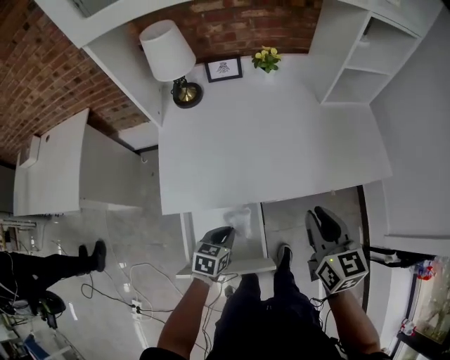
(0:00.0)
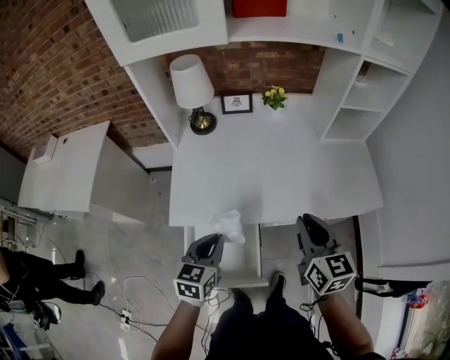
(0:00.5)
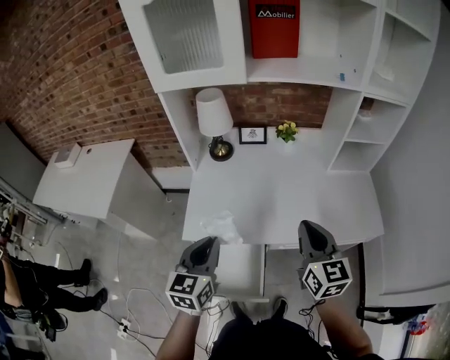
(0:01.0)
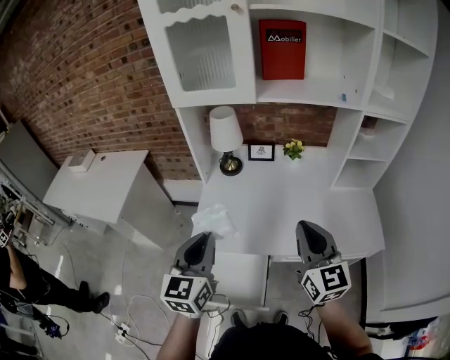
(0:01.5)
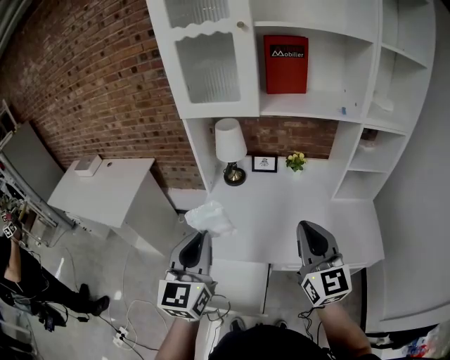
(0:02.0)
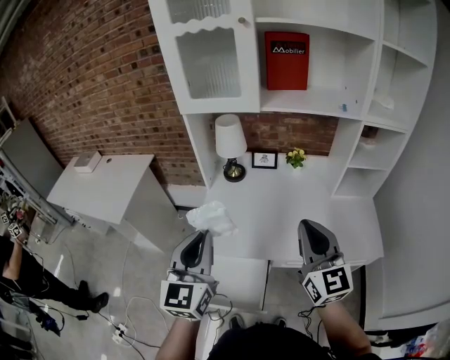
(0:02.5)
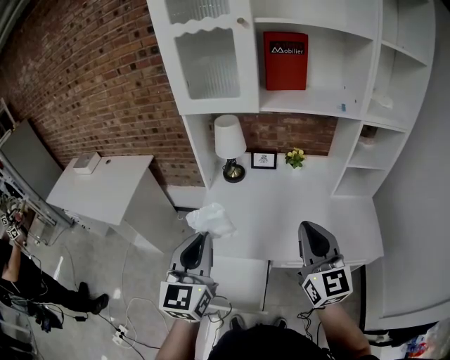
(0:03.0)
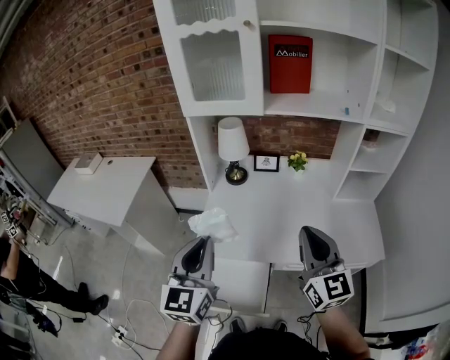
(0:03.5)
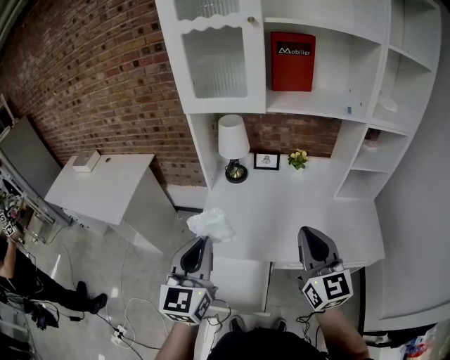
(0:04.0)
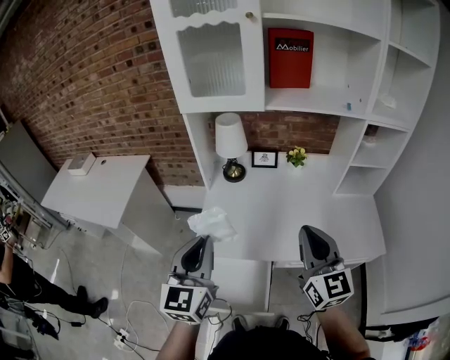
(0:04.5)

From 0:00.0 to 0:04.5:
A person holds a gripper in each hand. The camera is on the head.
From 0:00.0 to 0:02.0: The right gripper heads upward, covering roughly 25 cm, and changes its angle by approximately 40 degrees; the left gripper is displaced upward by approximately 50 cm, and tilts its fingers roughly 50 degrees upward.
From 0:02.0 to 0:04.5: The grippers make only small movements.

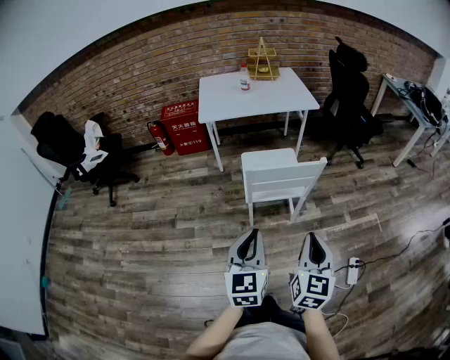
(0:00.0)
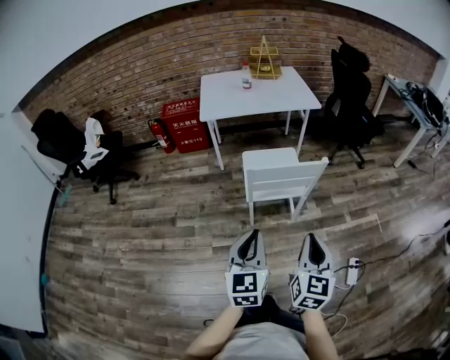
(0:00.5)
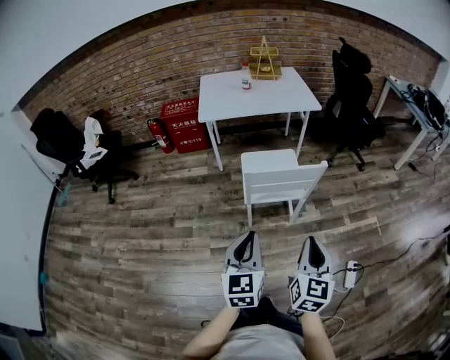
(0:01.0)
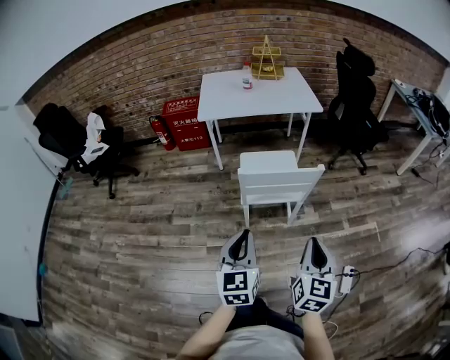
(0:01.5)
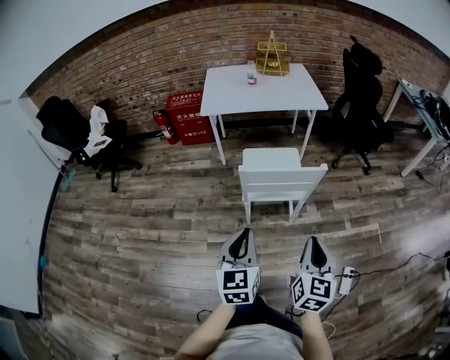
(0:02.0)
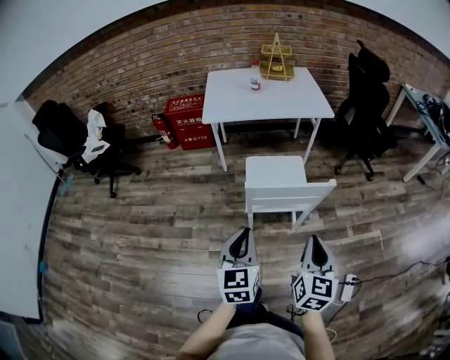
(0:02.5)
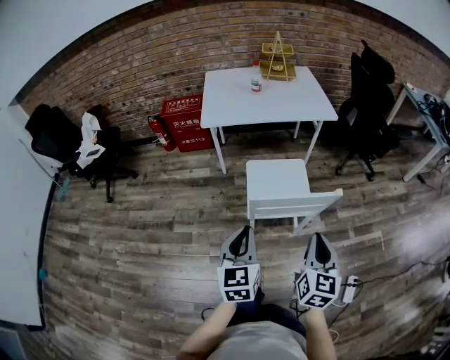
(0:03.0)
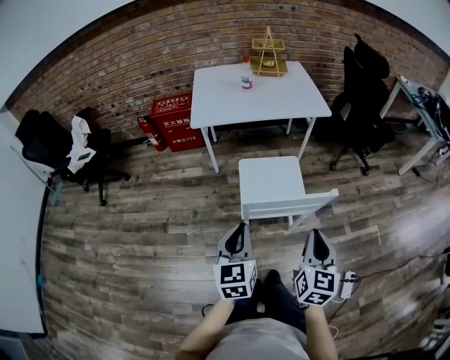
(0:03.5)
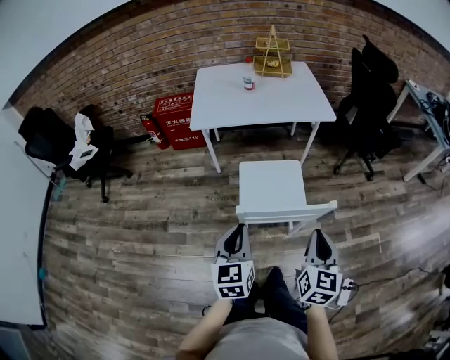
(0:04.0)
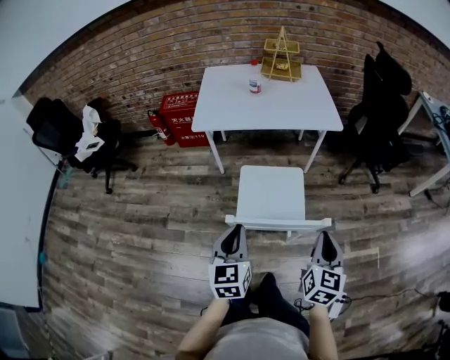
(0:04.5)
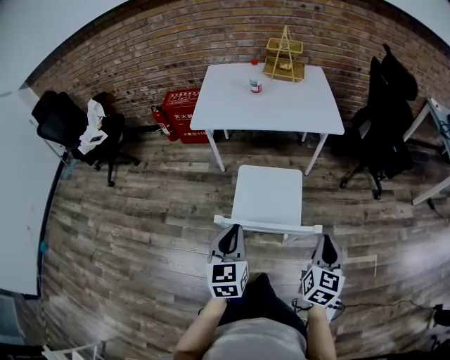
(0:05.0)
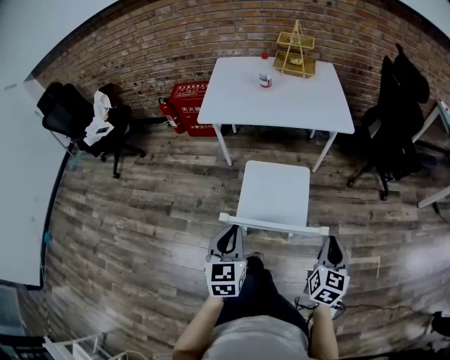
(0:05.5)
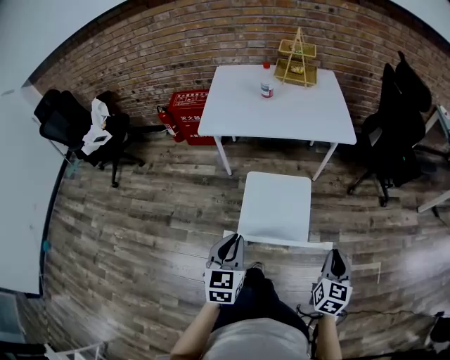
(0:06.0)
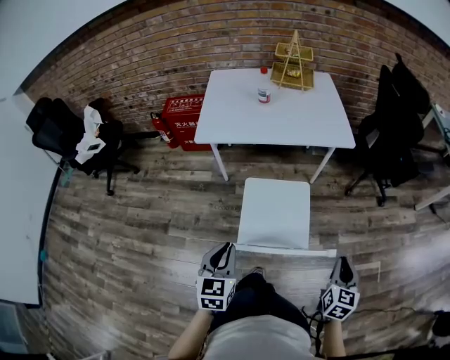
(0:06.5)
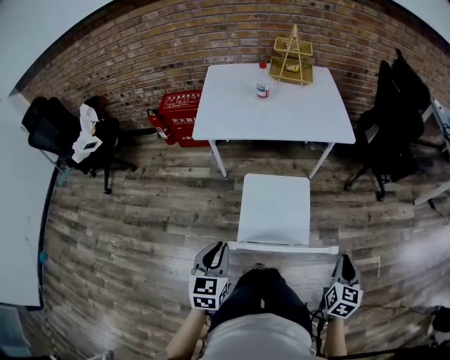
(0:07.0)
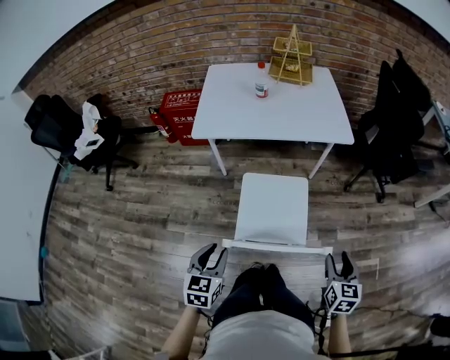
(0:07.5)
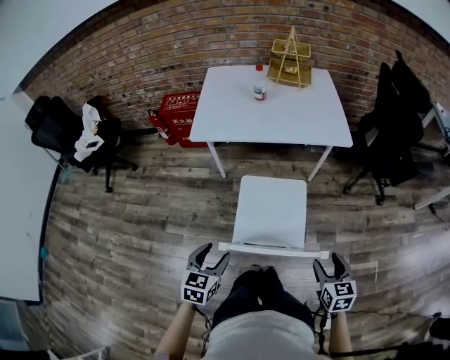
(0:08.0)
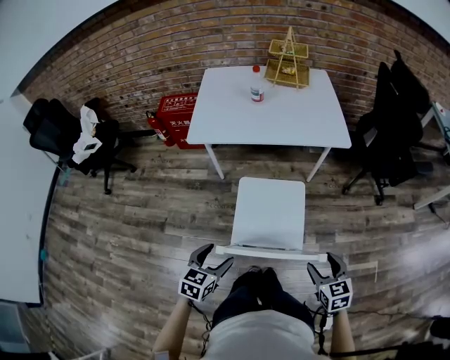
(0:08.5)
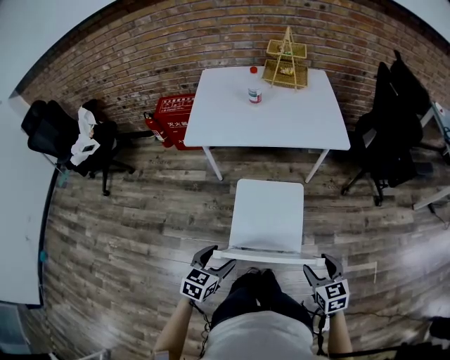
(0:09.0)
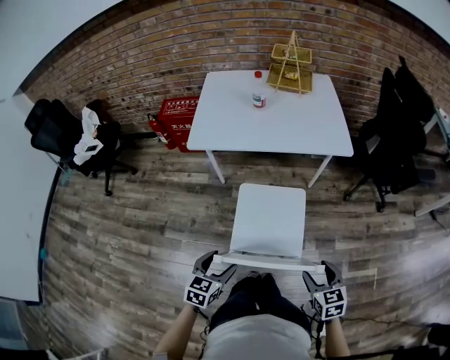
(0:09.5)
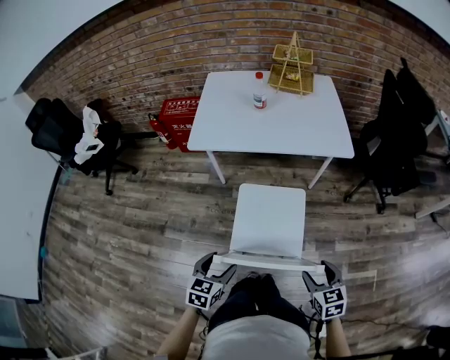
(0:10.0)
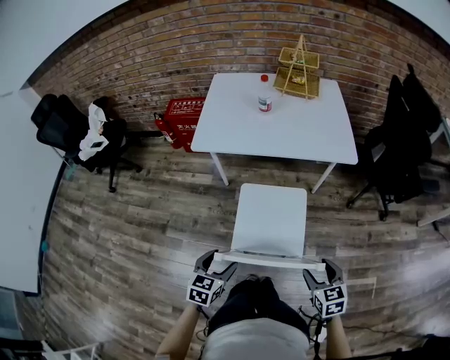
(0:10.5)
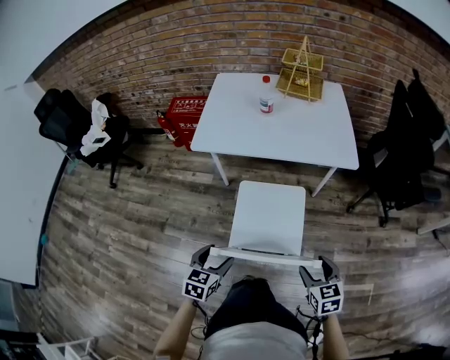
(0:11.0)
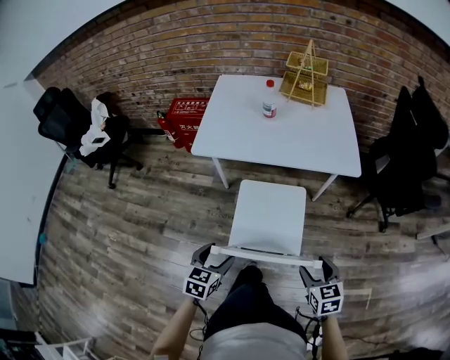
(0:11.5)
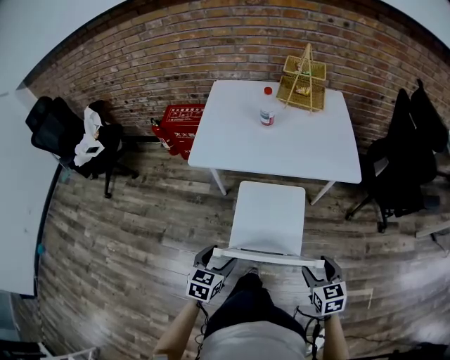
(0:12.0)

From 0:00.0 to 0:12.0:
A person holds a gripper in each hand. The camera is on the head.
From 0:00.0 to 0:02.0: The right gripper is displaced to the right by about 5 cm. Meanwhile the left gripper ends up approximately 5 cm from where it was.
From 0:02.0 to 0:04.0: Both grippers move forward, roughly 20 cm.
From 0:04.0 to 0:06.0: The left gripper heads forward, covering roughly 5 cm; the right gripper travels to the right, forward and downward by some 15 cm.
From 0:06.0 to 0:08.0: The right gripper rotates some 20 degrees, and opens. Meanwhile the left gripper is displaced downward by roughly 5 cm, and opens its fingers.
From 0:08.0 to 0:10.0: The left gripper shifts by some 5 cm.
From 0:10.0 to 0:12.0: The two grippers go approximately 10 cm forward.

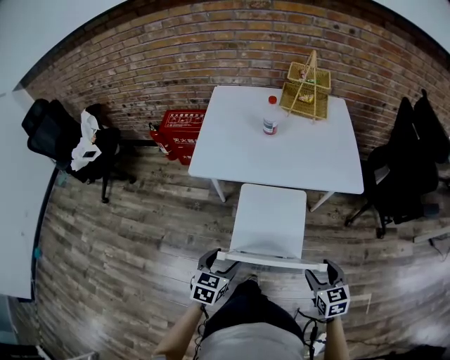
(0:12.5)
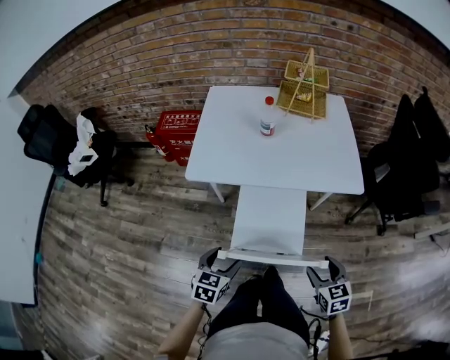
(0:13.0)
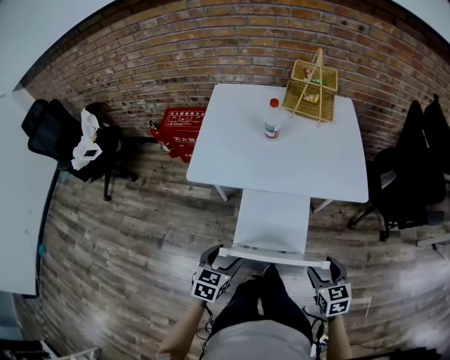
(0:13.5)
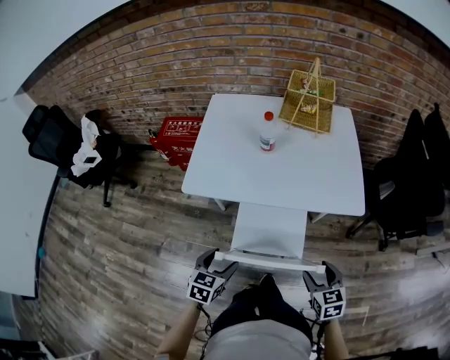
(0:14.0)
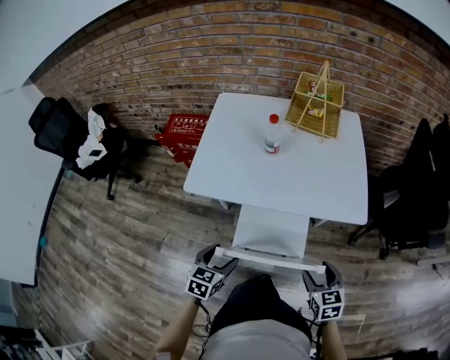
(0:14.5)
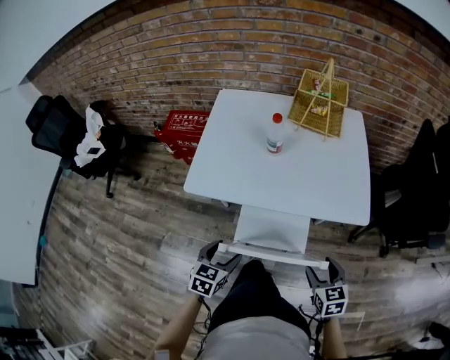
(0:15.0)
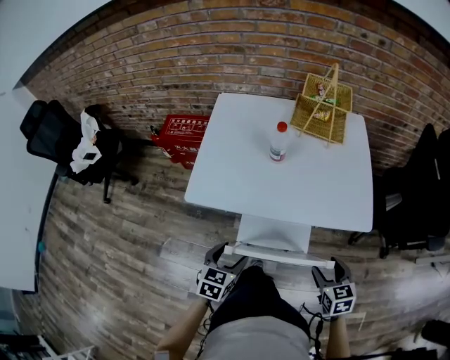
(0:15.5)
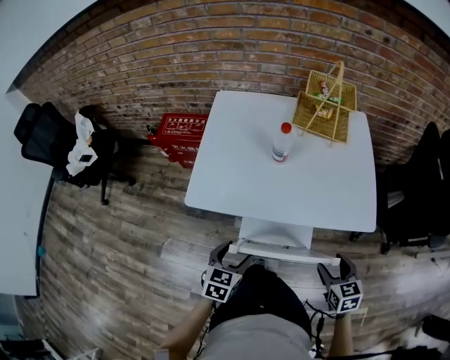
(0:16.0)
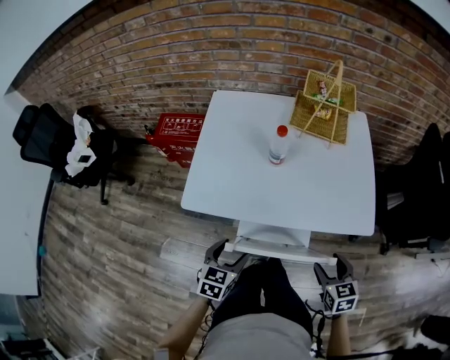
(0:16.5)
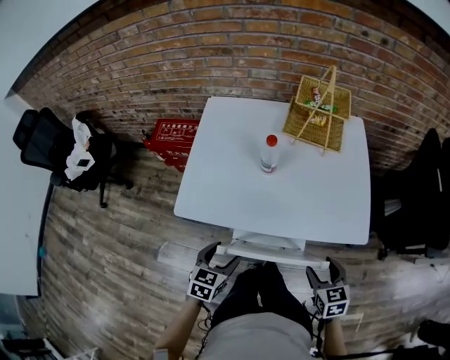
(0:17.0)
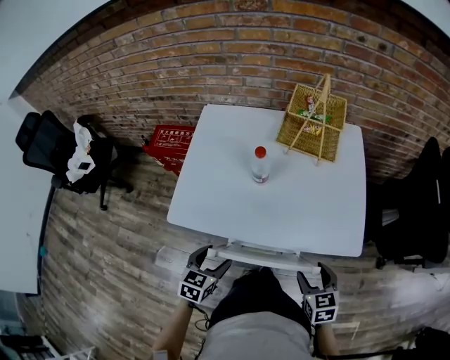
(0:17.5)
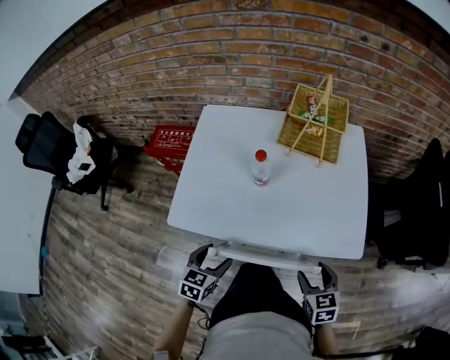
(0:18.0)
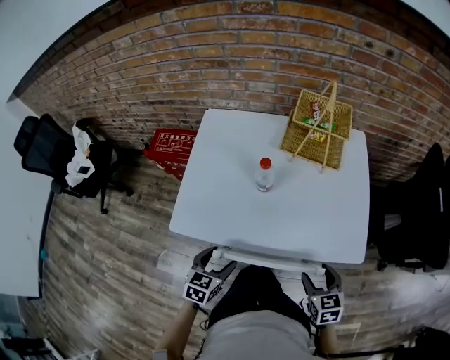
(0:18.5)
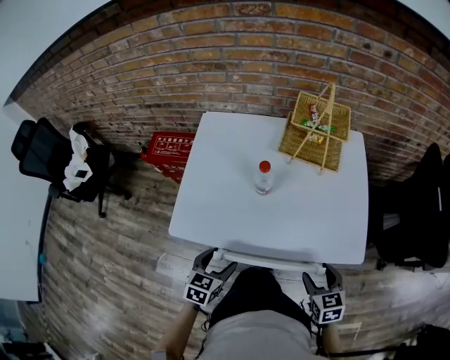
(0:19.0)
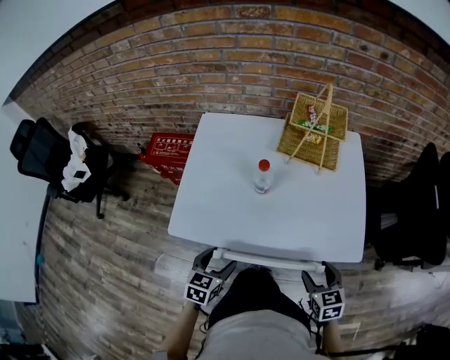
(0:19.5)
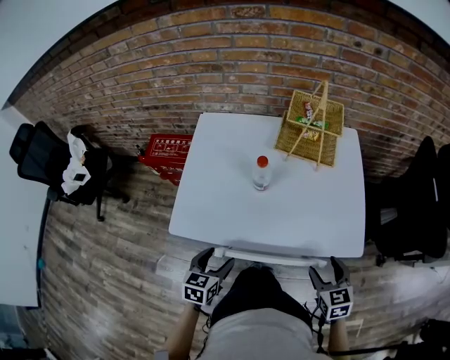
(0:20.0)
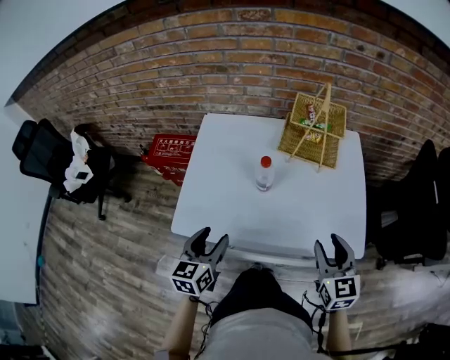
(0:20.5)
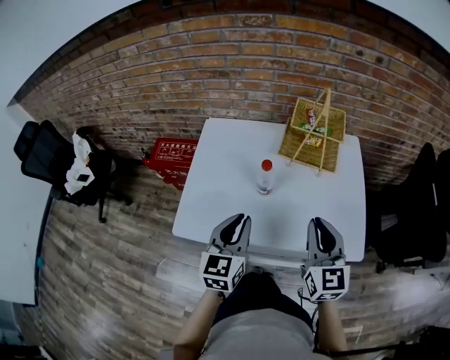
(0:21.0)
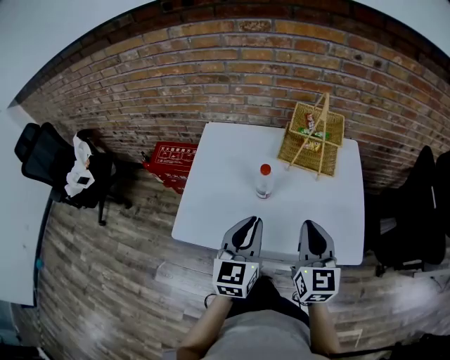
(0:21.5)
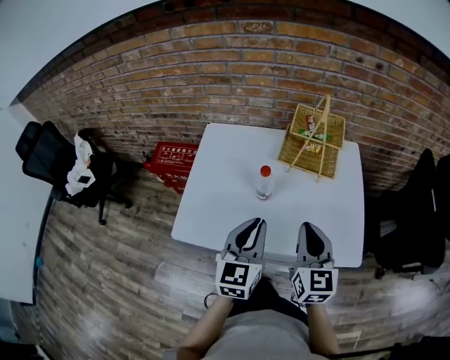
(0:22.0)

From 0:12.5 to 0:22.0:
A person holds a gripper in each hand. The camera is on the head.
From 0:12.5 to 0:14.5: Both grippers move forward, approximately 10 cm.
From 0:14.5 to 0:16.5: Both grippers move forward, roughly 10 cm.
From 0:16.5 to 0:18.0: The two grippers go about 5 cm forward.
From 0:18.0 to 0:20.0: The grippers stay close to where they were, moving slightly.
From 0:20.0 to 0:22.0: The left gripper goes roughly 25 cm upward, forward and to the right, rotates some 30 degrees, and closes up. Meanwhile the right gripper goes about 20 cm upward, forward and to the left, swivels about 30 degrees, and closes its fingers.

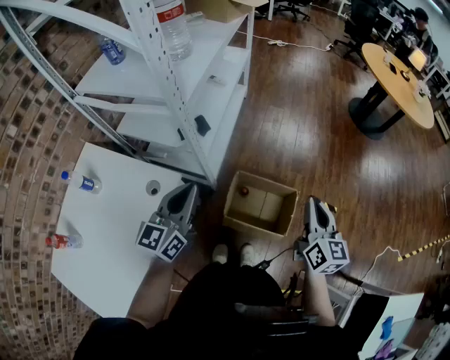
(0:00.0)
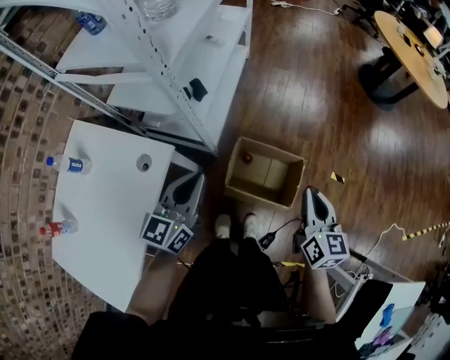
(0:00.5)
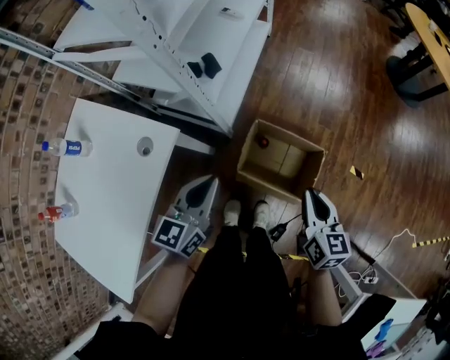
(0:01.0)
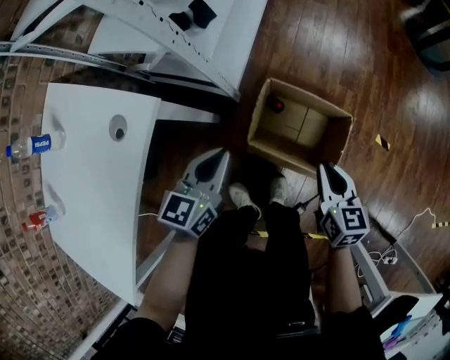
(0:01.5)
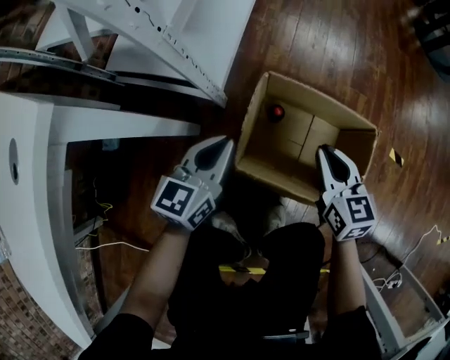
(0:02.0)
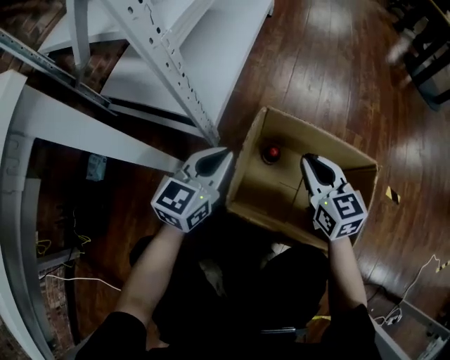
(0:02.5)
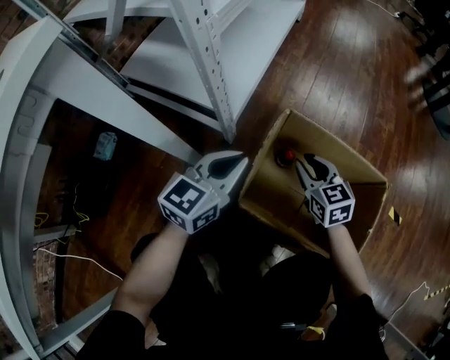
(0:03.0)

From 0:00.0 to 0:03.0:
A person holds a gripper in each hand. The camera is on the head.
From 0:00.0 to 0:01.5: Both grippers travel together downward, some 30 cm. The left gripper changes its angle by approximately 20 degrees, while the right gripper swivels some 30 degrees.
From 0:01.5 to 0:03.0: The right gripper is displaced downward and forward by about 40 cm, and changes its angle by some 20 degrees; the left gripper goes roughly 30 cm downward.
